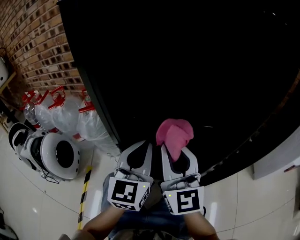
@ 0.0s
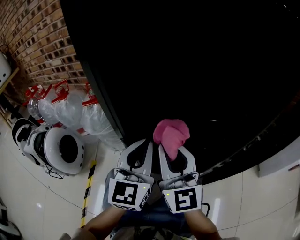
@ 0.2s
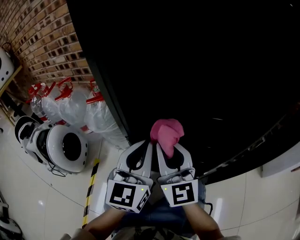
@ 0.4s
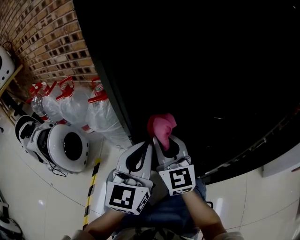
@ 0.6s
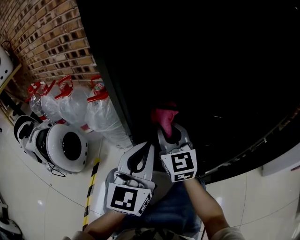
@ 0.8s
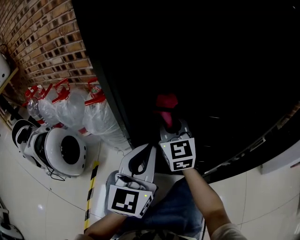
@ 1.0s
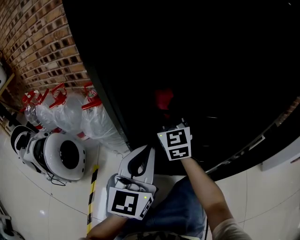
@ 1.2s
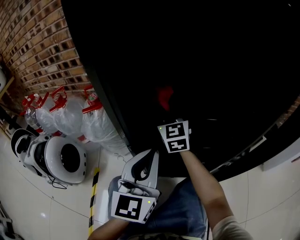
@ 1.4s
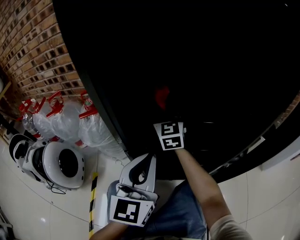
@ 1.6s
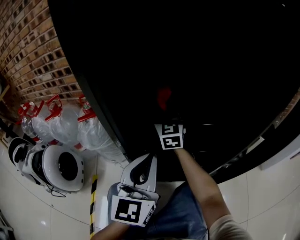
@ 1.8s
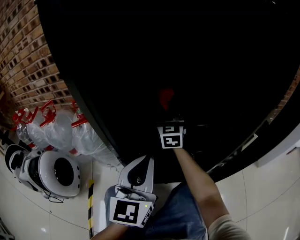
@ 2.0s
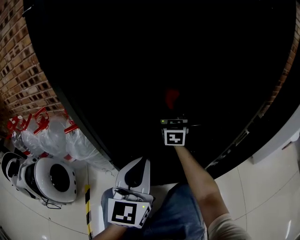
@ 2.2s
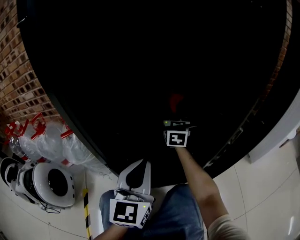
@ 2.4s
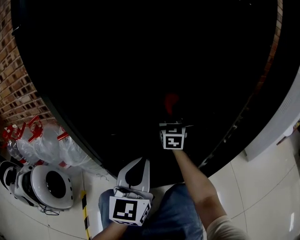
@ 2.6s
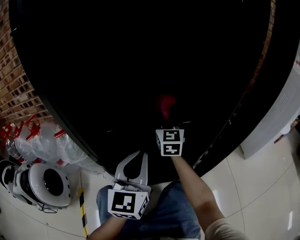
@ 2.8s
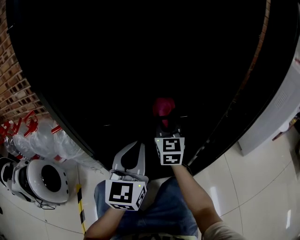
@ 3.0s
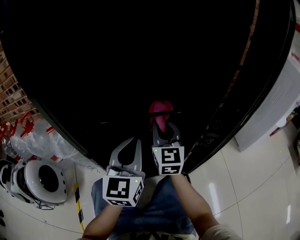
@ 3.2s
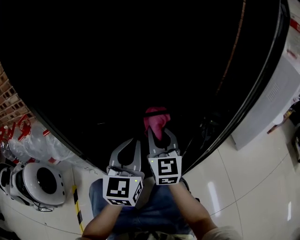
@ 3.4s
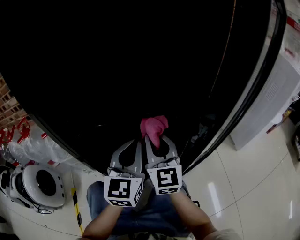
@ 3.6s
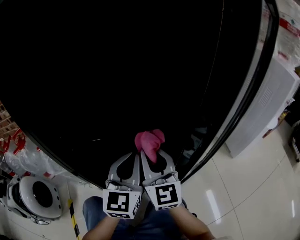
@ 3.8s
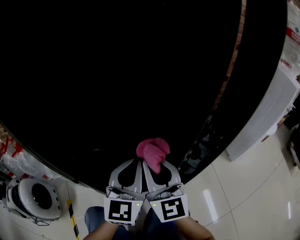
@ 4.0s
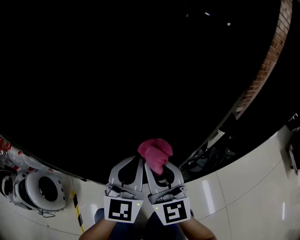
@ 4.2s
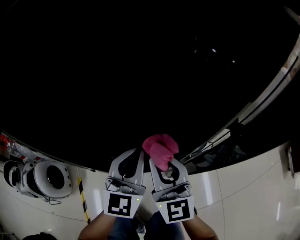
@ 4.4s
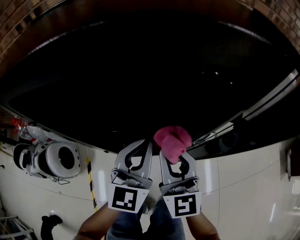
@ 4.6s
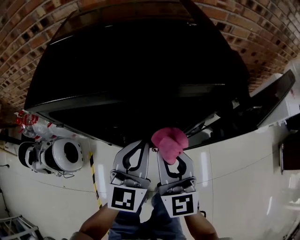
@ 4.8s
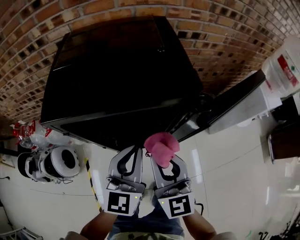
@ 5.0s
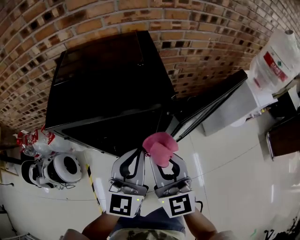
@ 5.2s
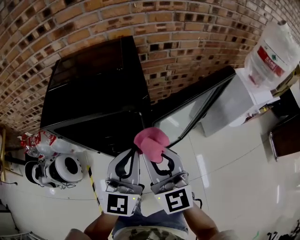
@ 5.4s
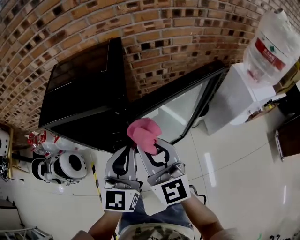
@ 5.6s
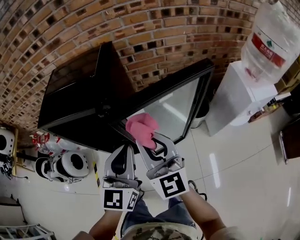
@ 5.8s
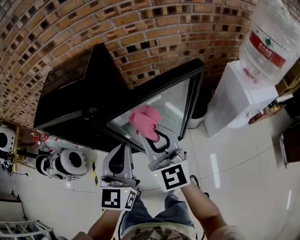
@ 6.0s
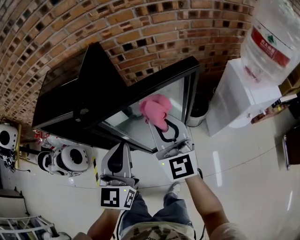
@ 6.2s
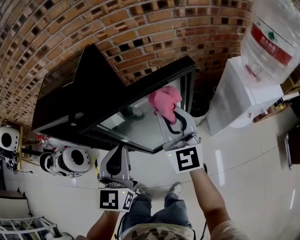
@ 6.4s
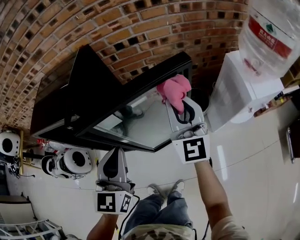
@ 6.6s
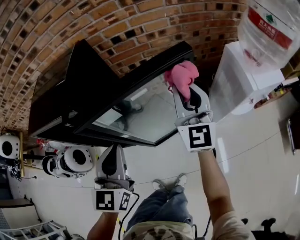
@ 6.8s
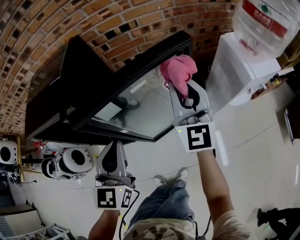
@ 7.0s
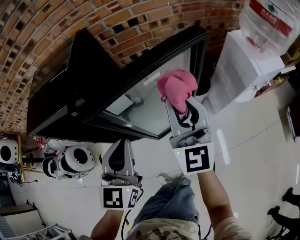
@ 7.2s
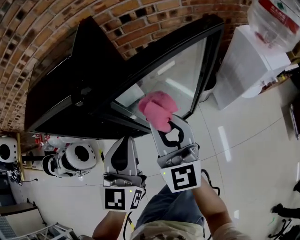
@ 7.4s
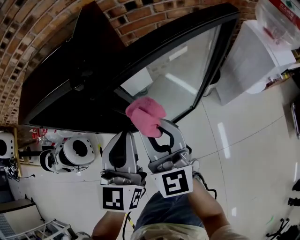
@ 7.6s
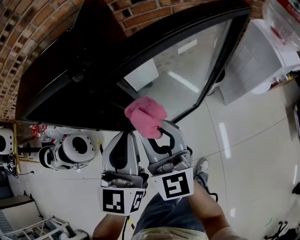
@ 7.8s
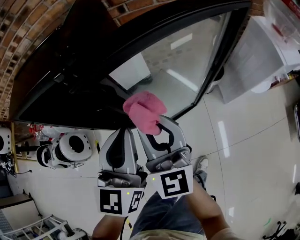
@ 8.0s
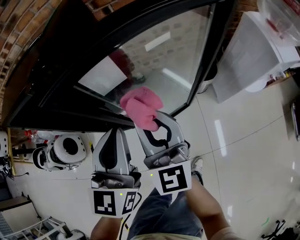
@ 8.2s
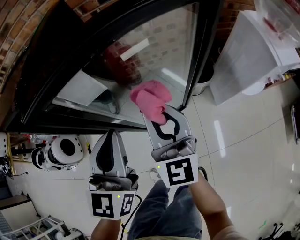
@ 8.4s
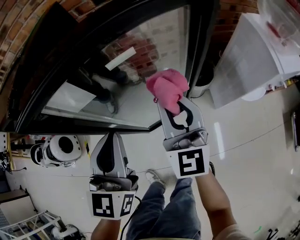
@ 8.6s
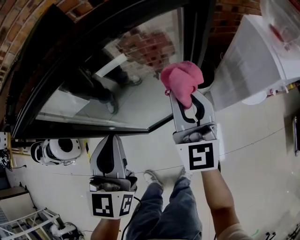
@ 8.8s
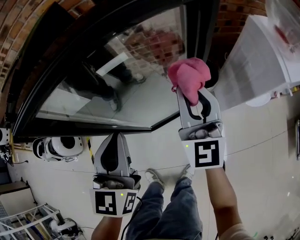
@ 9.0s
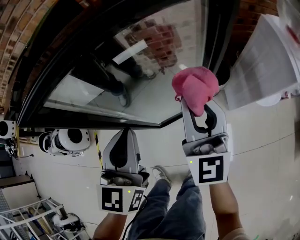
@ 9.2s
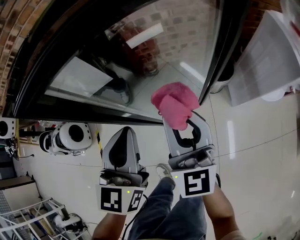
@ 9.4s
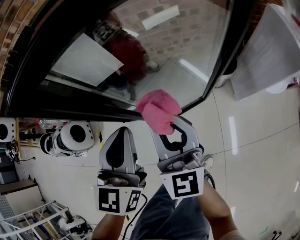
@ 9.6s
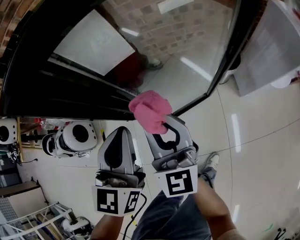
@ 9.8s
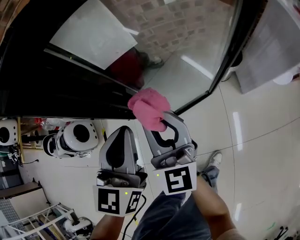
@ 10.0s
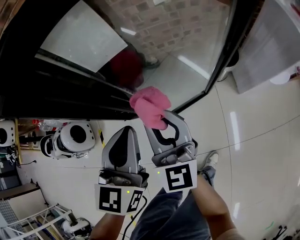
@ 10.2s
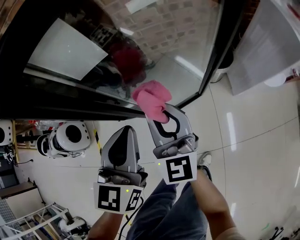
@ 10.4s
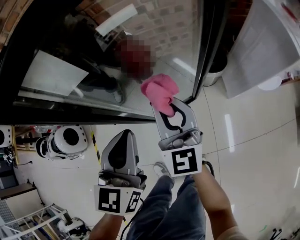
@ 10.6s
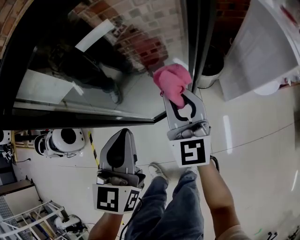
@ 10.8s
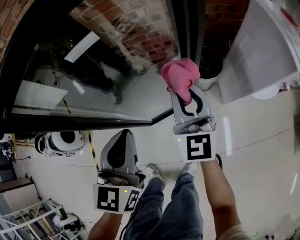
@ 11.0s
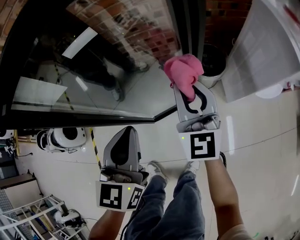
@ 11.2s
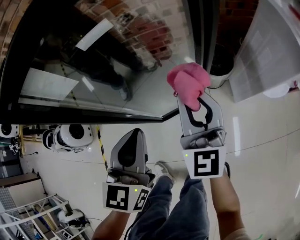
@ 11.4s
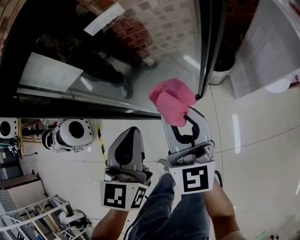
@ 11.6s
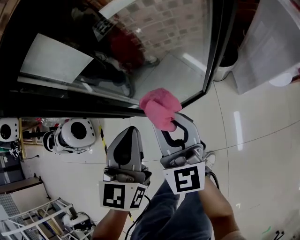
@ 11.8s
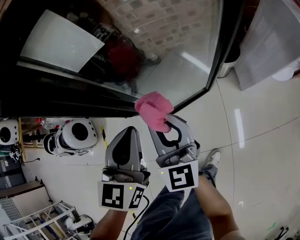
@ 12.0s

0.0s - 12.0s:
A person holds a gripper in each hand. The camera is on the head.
0.0s - 1.6s: The right gripper heads forward and downward, covering roughly 25 cm.
1.6s - 3.0s: The left gripper is displaced to the right by some 10 cm. Meanwhile the right gripper is displaced to the right by some 15 cm.
3.0s - 4.4s: The left gripper travels upward and to the right by some 15 cm; the right gripper heads upward and backward, covering some 25 cm.
4.4s - 6.0s: The grippers both shift upward and to the right by approximately 35 cm.
6.0s - 7.6s: The right gripper goes roughly 15 cm downward and to the left, while the left gripper is displaced to the left and downward by some 10 cm.
7.6s - 9.0s: The right gripper travels to the right and forward by approximately 25 cm. The left gripper moves to the right and downward, roughly 15 cm.
9.0s - 10.4s: The left gripper moves downward and to the left, about 10 cm. The right gripper shifts roughly 20 cm to the left, downward and backward.
10.4s - 12.0s: The left gripper travels to the right and back again, roughly 10 cm each way; the right gripper travels to the right and back again, about 20 cm each way.

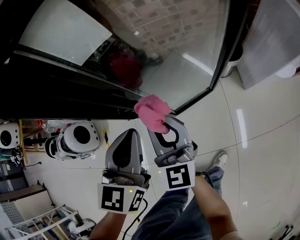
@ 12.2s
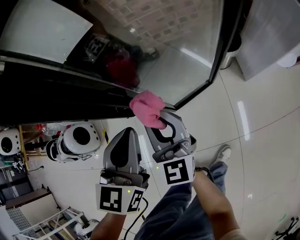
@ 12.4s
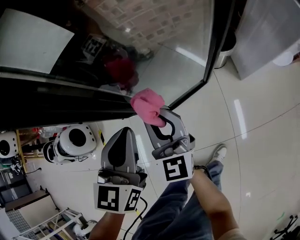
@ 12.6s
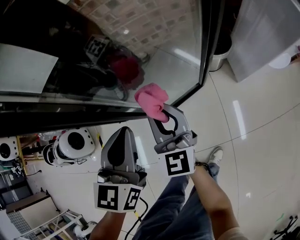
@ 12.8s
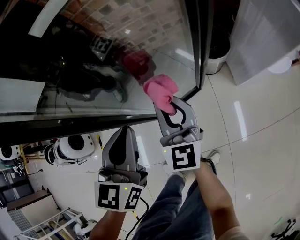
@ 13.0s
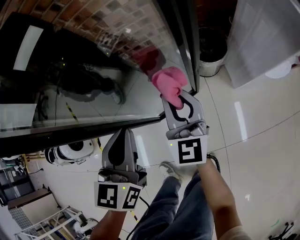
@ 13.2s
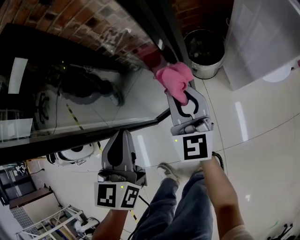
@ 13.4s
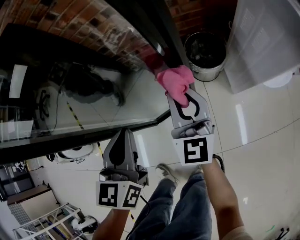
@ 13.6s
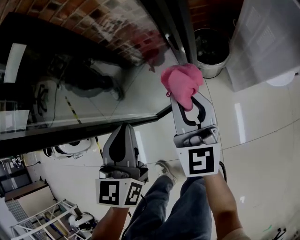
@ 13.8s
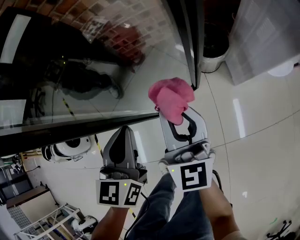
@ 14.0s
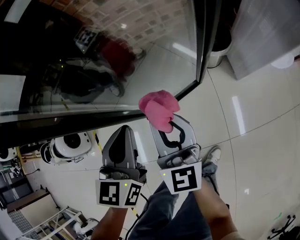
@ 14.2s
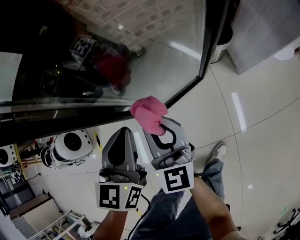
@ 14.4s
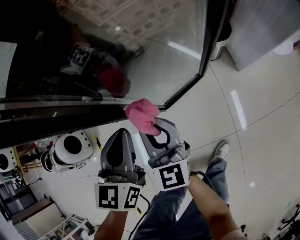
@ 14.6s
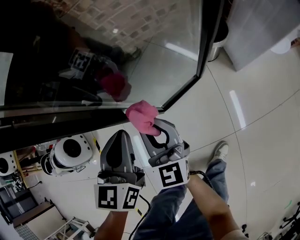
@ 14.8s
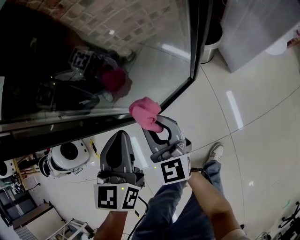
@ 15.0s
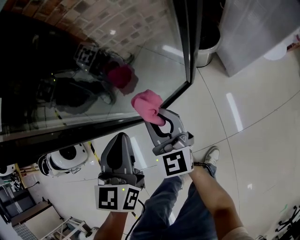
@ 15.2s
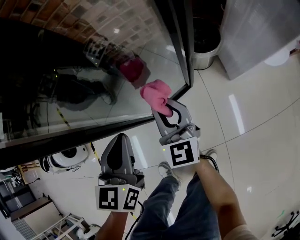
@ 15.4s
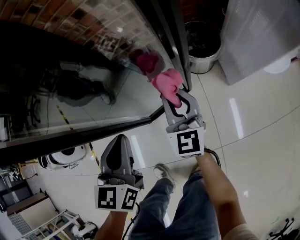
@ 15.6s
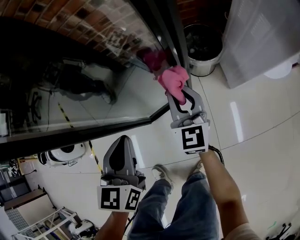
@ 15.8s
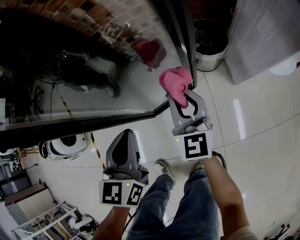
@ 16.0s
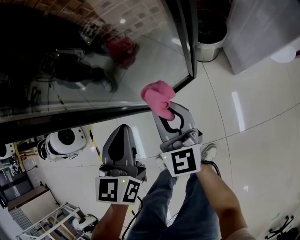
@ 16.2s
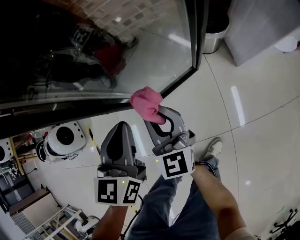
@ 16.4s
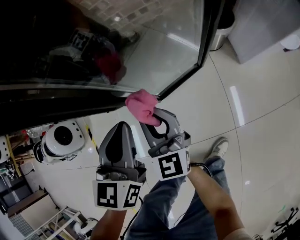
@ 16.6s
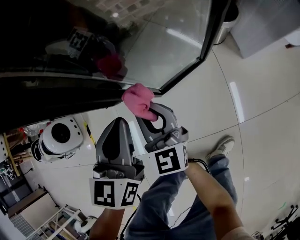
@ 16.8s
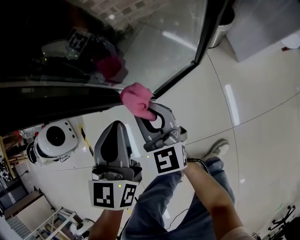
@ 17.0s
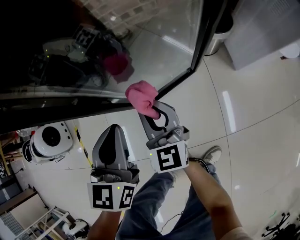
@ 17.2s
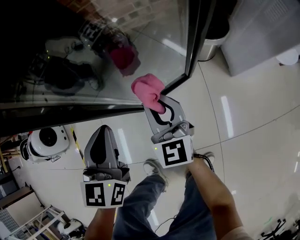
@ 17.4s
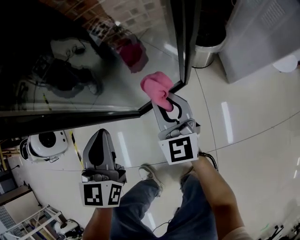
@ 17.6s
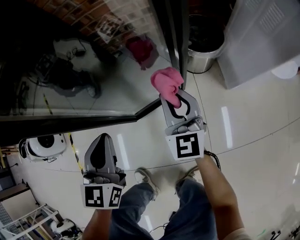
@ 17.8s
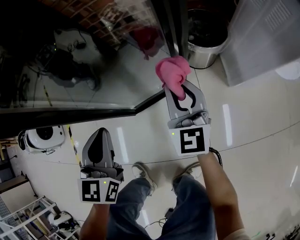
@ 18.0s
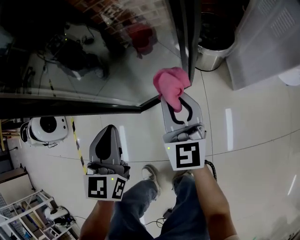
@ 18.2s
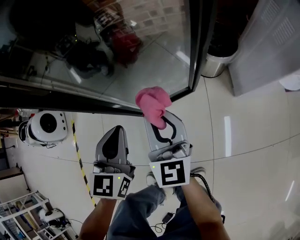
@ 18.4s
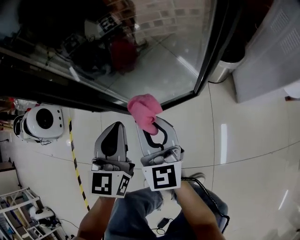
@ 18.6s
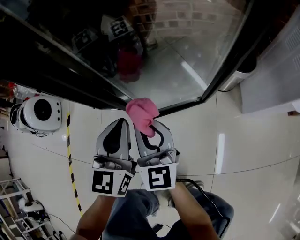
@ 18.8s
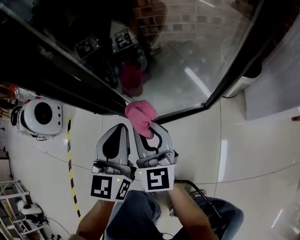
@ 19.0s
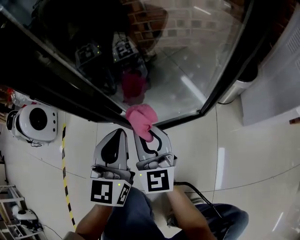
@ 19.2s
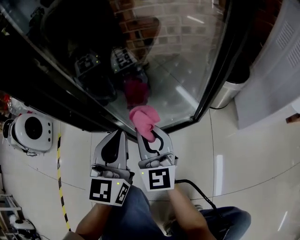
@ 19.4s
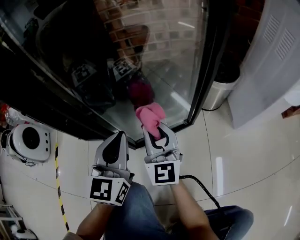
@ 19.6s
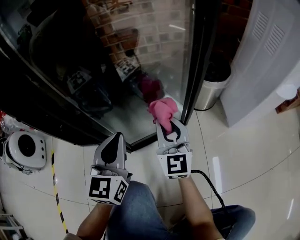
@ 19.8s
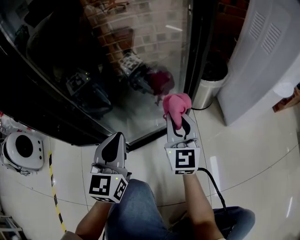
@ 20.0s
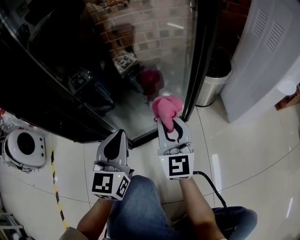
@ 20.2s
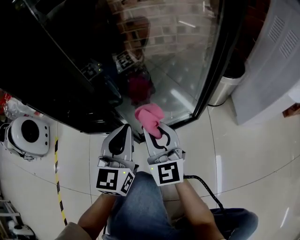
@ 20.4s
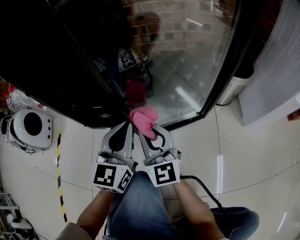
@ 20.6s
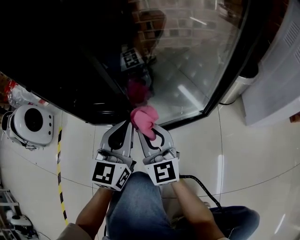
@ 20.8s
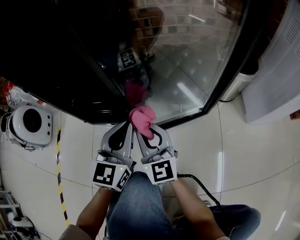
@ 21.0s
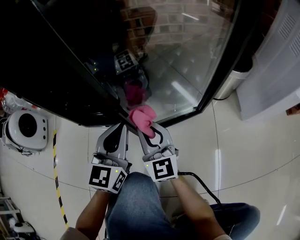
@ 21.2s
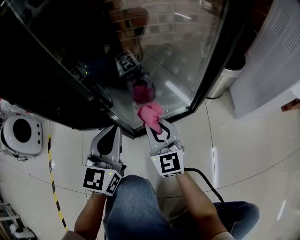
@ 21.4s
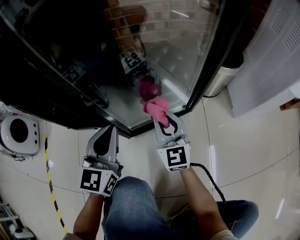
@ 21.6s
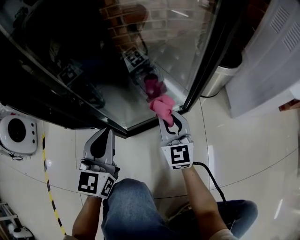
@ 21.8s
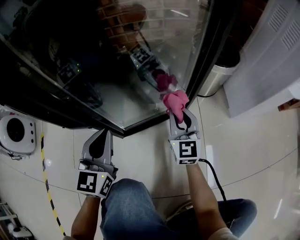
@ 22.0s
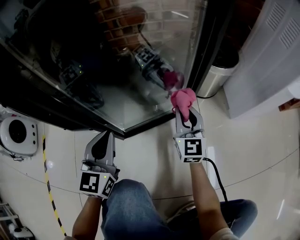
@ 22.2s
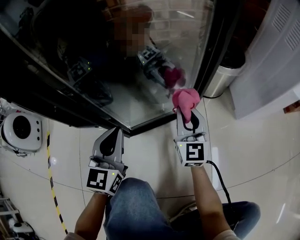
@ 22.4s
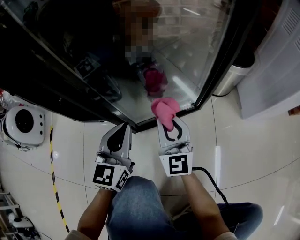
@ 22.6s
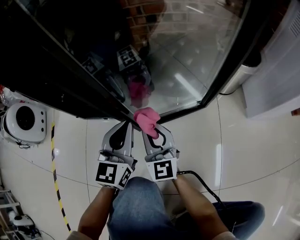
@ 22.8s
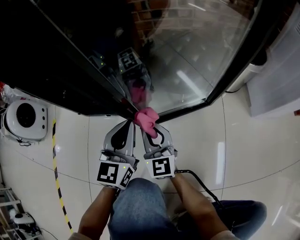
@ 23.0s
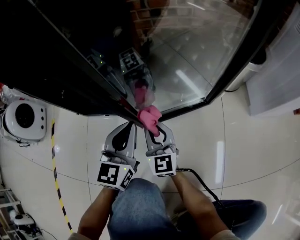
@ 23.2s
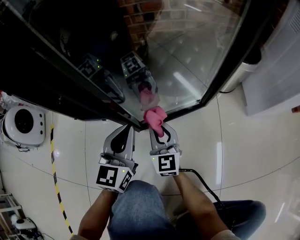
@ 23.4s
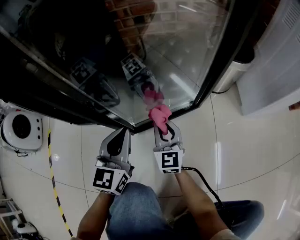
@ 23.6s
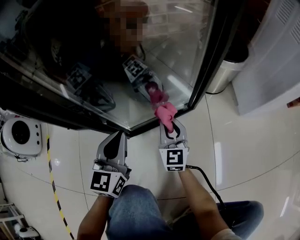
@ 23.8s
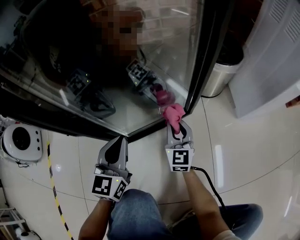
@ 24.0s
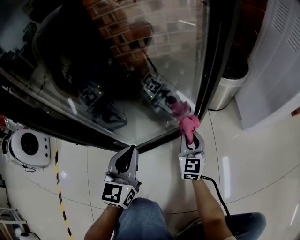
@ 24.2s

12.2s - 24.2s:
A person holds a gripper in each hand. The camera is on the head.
12.2s - 13.8s: The left gripper shifts roughly 15 cm to the right and forward; the right gripper heads to the right and forward, covering approximately 25 cm.
13.8s - 15.2s: The right gripper is displaced to the left, downward and backward by some 20 cm, while the left gripper heads to the left and downward, covering approximately 10 cm.
15.2s - 16.6s: The left gripper ends up roughly 5 cm from where it was. Meanwhile the right gripper heads to the left and backward, covering roughly 10 cm.
16.6s - 18.2s: The left gripper goes some 10 cm to the right and downward, while the right gripper goes roughly 20 cm to the right.
18.2s - 19.8s: Both grippers travel together downward, approximately 10 cm. The right gripper moves about 20 cm to the left and comes back.
19.8s - 21.2s: The left gripper heads to the left and downward, covering about 10 cm. Meanwhile the right gripper is displaced to the left and downward by approximately 15 cm.
21.2s - 22.6s: The right gripper travels to the right by about 10 cm. Meanwhile the left gripper ends up roughly 5 cm from where it was.
22.6s - 24.2s: The right gripper is displaced downward, to the right and forward by some 20 cm, and turns by some 20 degrees.
